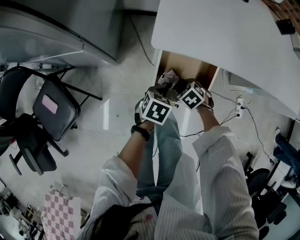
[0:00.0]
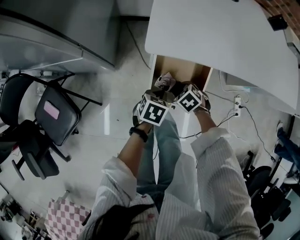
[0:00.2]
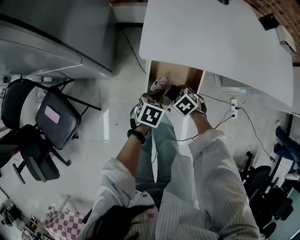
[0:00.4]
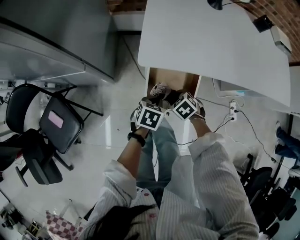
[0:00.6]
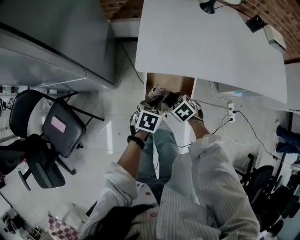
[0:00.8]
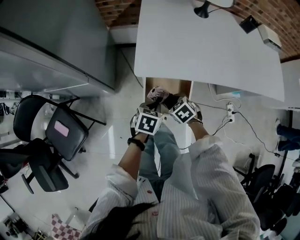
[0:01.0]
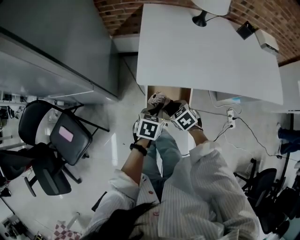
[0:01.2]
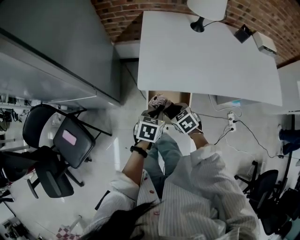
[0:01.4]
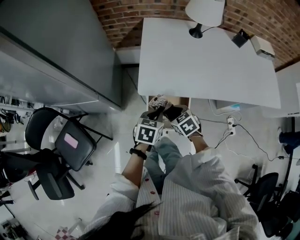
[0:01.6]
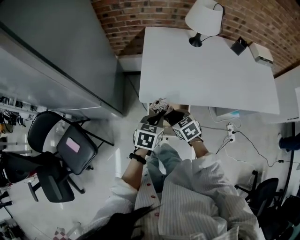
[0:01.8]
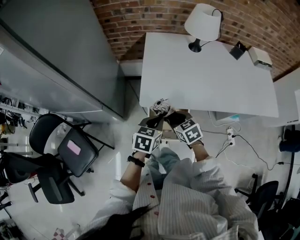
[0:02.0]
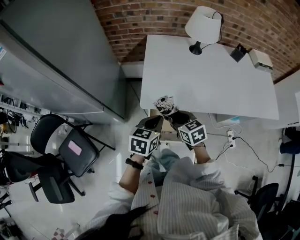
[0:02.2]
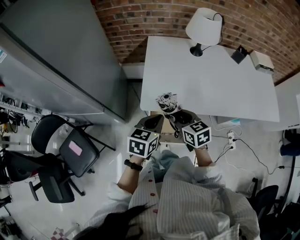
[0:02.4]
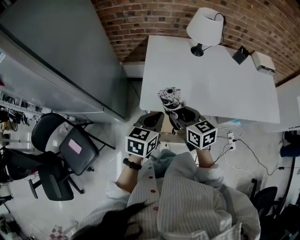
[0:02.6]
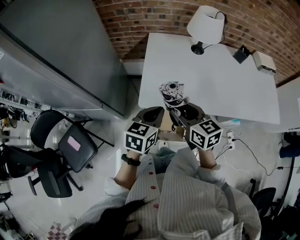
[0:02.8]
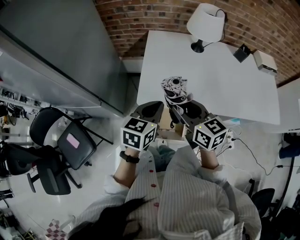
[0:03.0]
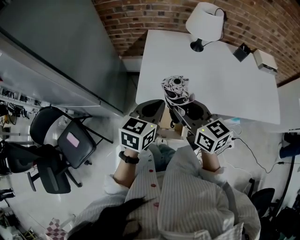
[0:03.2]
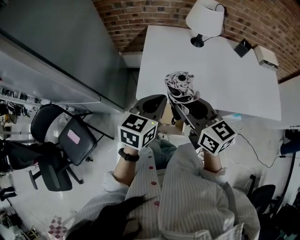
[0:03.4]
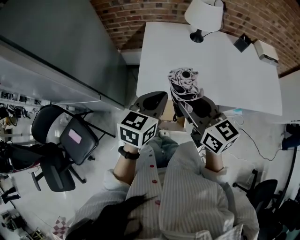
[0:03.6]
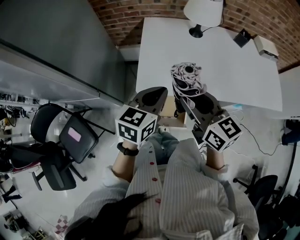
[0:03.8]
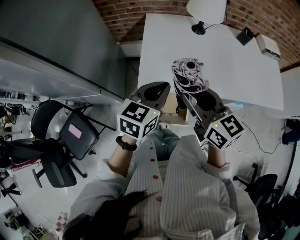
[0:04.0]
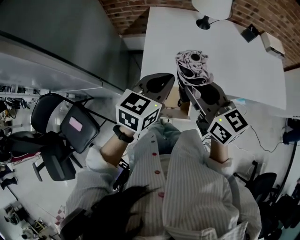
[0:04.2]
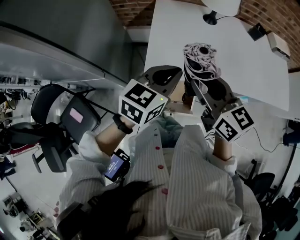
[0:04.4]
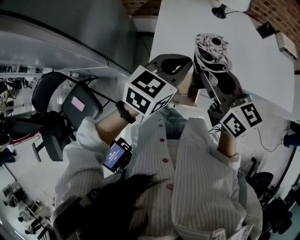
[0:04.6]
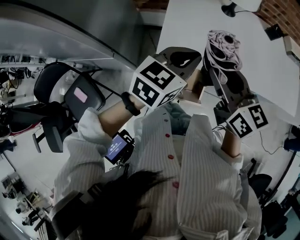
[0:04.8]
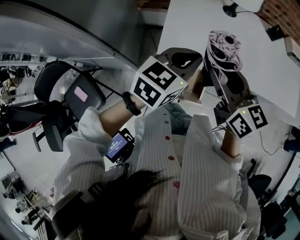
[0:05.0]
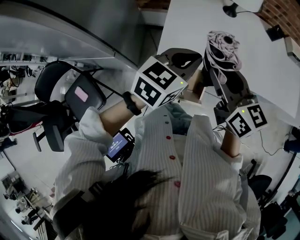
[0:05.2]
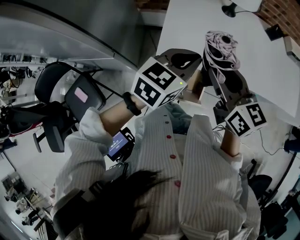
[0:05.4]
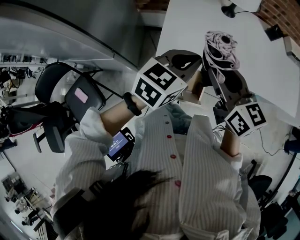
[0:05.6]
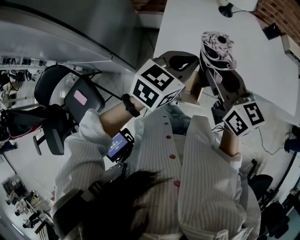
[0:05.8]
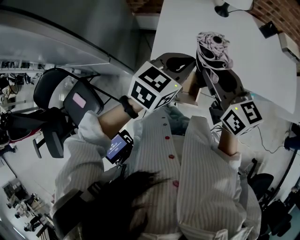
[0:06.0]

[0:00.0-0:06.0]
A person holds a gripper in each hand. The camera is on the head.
0:00.0 to 0:01.6: The grippers both shift upward by some 25 cm. The right gripper turns by approximately 30 degrees.
0:01.6 to 0:03.0: Both grippers travel together upward, roughly 20 cm. The right gripper points its fingers approximately 40 degrees further upward.
0:03.0 to 0:04.4: The grippers both shift upward by some 5 cm.
0:04.4 to 0:06.0: The grippers move only a little.

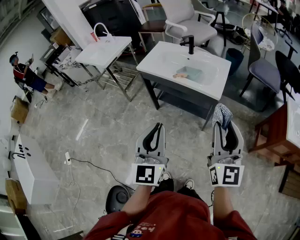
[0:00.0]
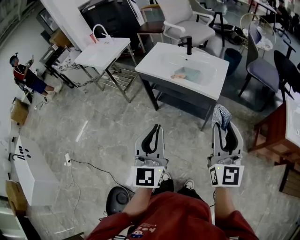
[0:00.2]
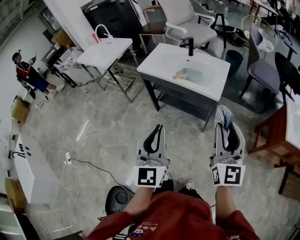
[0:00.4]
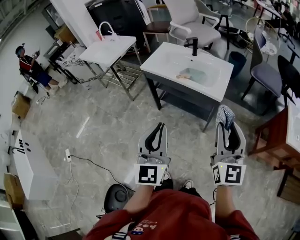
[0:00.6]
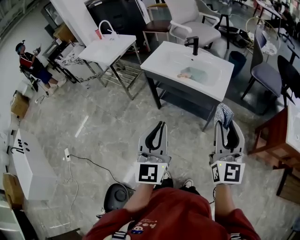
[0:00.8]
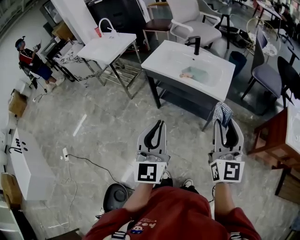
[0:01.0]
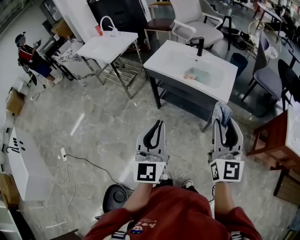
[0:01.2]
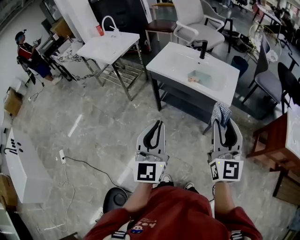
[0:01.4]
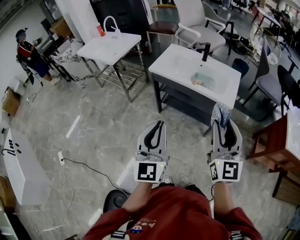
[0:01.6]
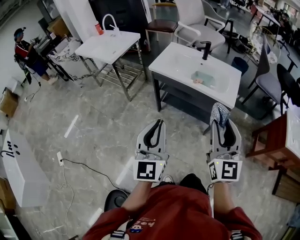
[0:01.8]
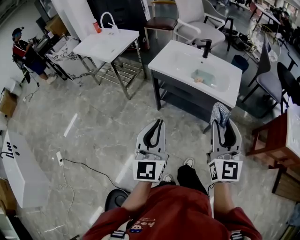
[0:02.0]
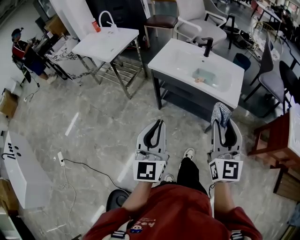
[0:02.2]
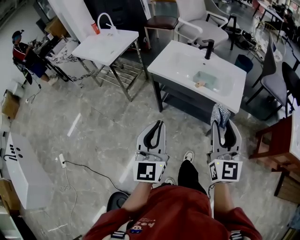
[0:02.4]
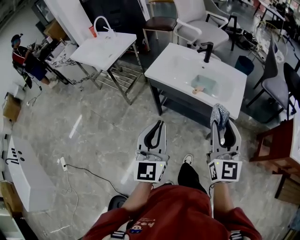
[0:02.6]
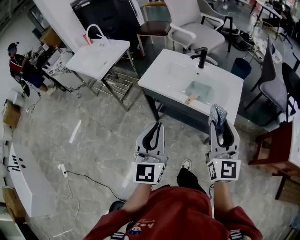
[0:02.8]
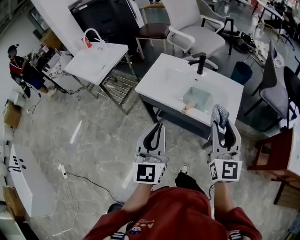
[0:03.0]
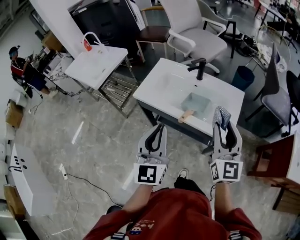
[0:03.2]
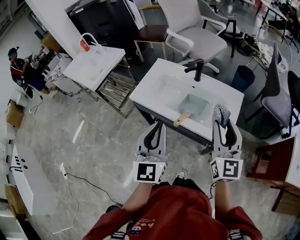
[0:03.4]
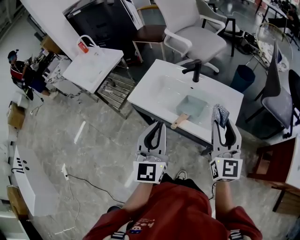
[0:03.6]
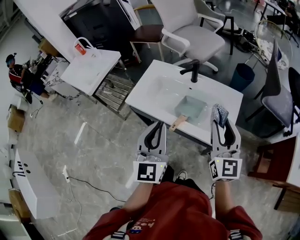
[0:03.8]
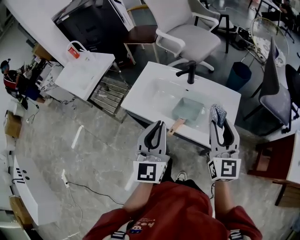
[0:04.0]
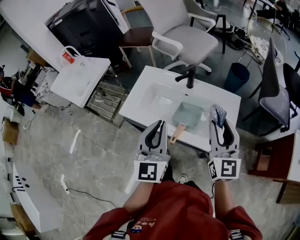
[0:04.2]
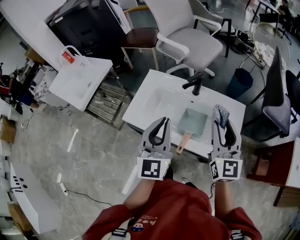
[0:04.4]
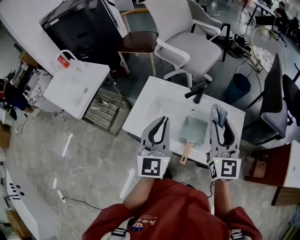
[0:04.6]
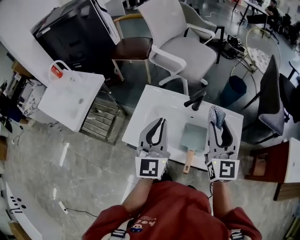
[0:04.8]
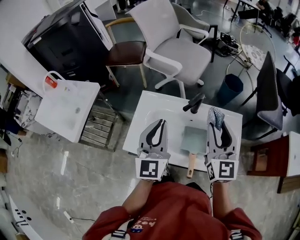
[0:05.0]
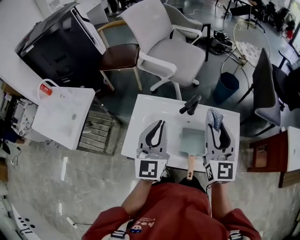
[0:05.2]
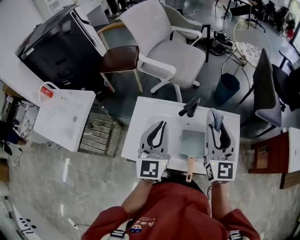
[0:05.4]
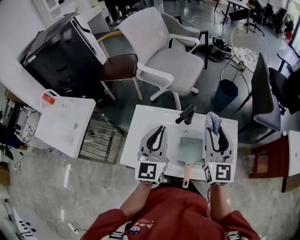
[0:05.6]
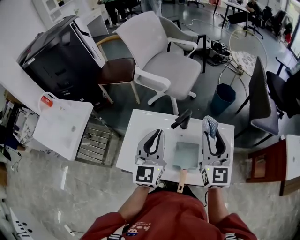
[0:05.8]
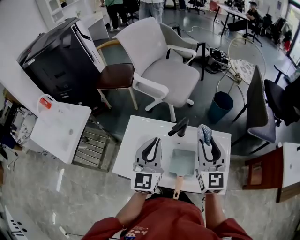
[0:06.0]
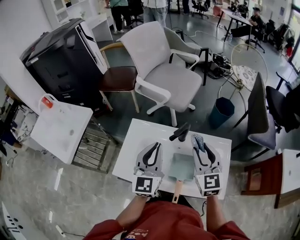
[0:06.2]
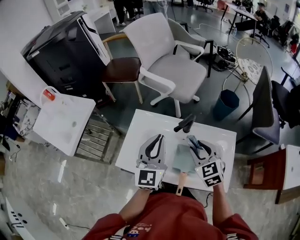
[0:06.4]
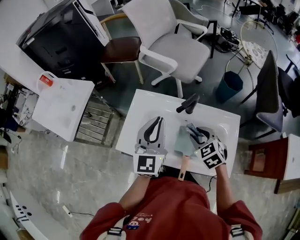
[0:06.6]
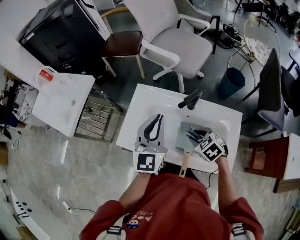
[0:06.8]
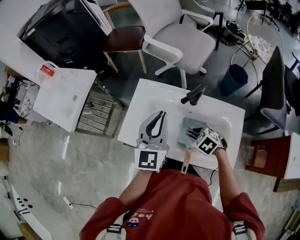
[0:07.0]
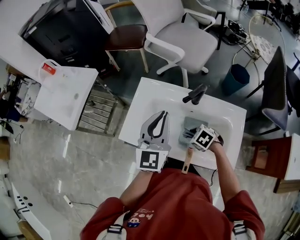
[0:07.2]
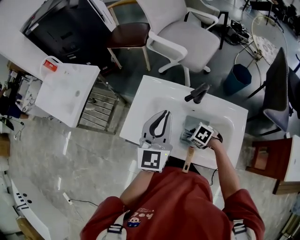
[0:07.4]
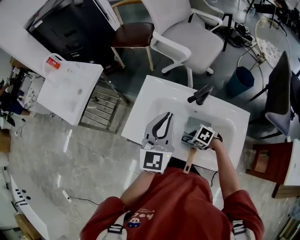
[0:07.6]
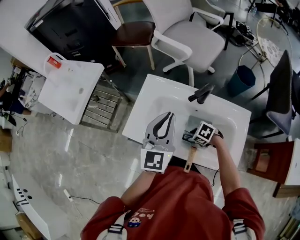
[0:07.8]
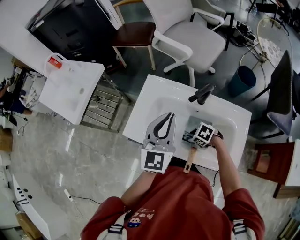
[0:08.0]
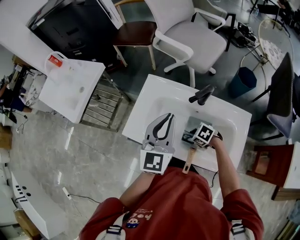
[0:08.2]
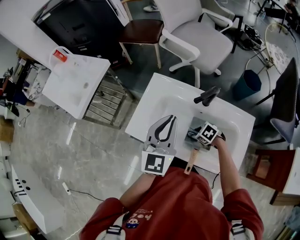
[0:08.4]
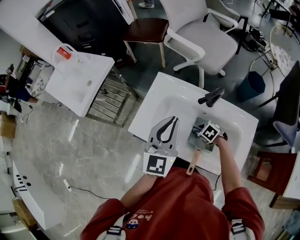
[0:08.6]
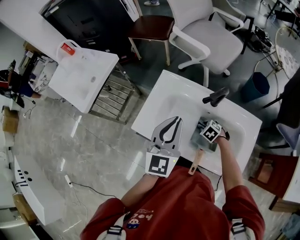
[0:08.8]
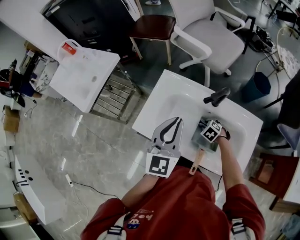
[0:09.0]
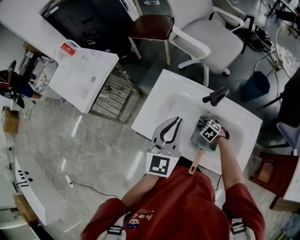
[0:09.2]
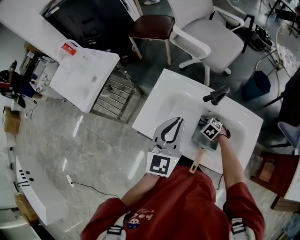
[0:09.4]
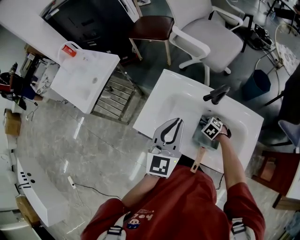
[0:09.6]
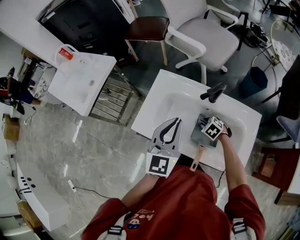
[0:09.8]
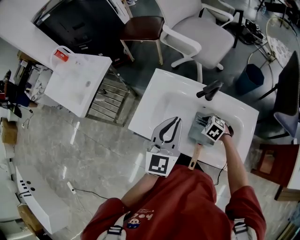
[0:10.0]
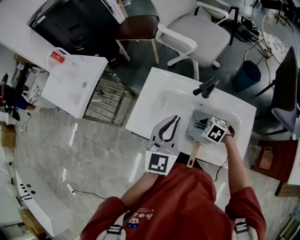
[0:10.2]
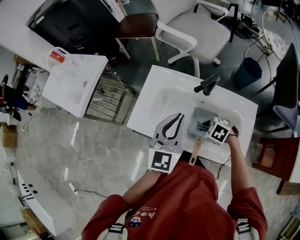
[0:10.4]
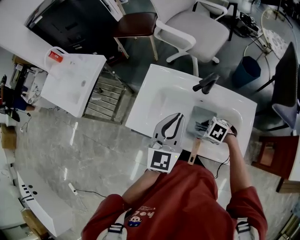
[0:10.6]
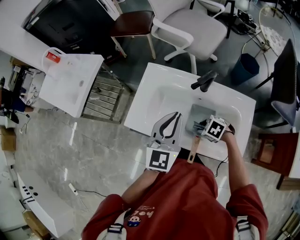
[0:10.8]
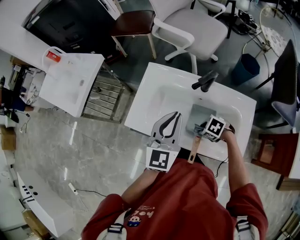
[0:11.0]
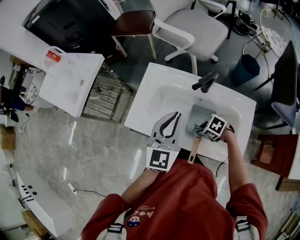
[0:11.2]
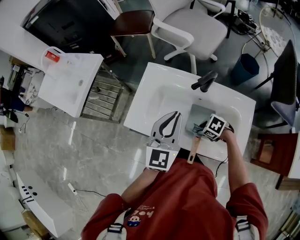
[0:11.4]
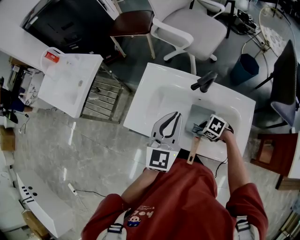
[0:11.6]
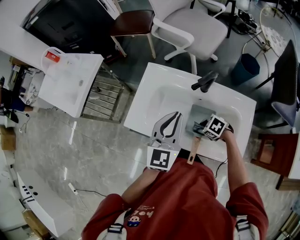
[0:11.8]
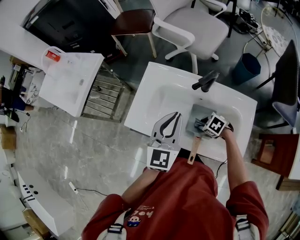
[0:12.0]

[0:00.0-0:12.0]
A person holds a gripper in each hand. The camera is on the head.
0:00.0 to 0:01.6: Both grippers travel together to the left, roughly 15 cm.
0:01.6 to 0:03.0: The grippers both shift forward by about 20 cm.
0:03.0 to 0:04.4: The two grippers go roughly 20 cm forward.
0:04.4 to 0:06.0: The two grippers go roughly 15 cm forward.
0:06.0 to 0:07.6: The right gripper goes some 35 cm downward, and points its fingers roughly 70 degrees further downward. The left gripper moves some 5 cm.
0:07.6 to 0:09.0: The right gripper ends up roughly 10 cm from where it was, and rotates some 20 degrees.
0:09.0 to 0:10.4: The right gripper goes about 15 cm upward and backward.
0:10.4 to 0:12.0: The right gripper moves downward, roughly 5 cm.

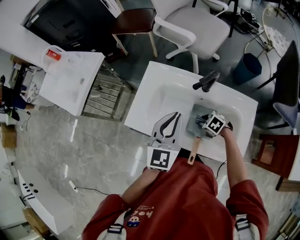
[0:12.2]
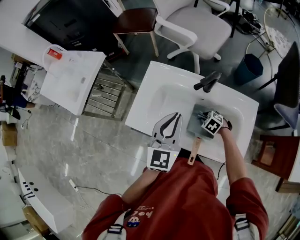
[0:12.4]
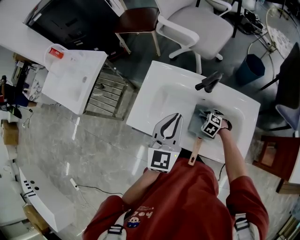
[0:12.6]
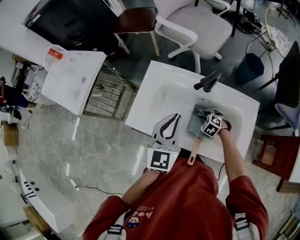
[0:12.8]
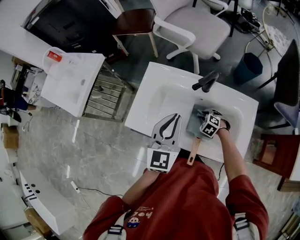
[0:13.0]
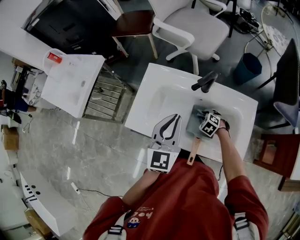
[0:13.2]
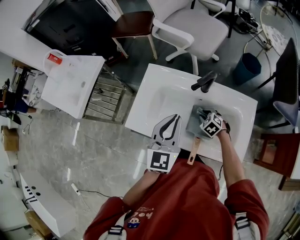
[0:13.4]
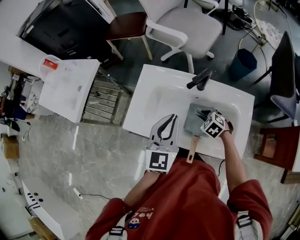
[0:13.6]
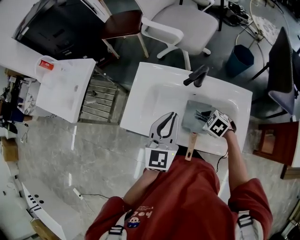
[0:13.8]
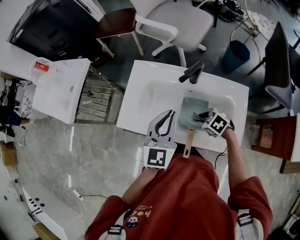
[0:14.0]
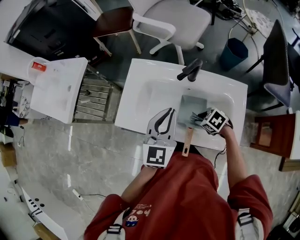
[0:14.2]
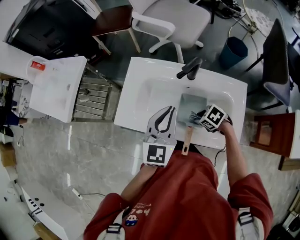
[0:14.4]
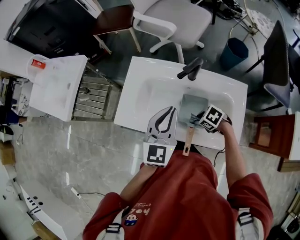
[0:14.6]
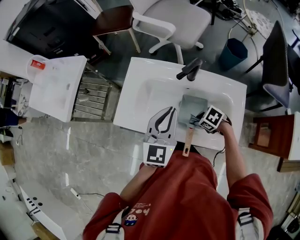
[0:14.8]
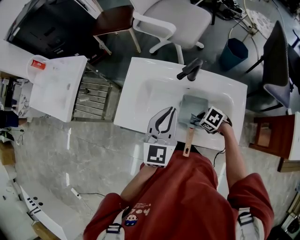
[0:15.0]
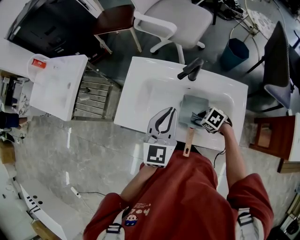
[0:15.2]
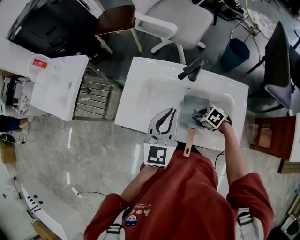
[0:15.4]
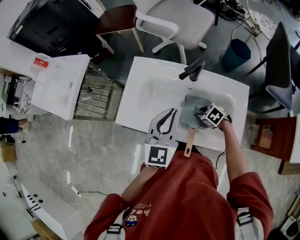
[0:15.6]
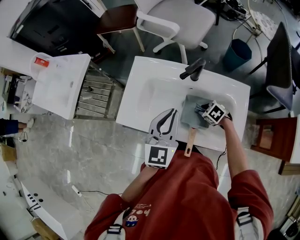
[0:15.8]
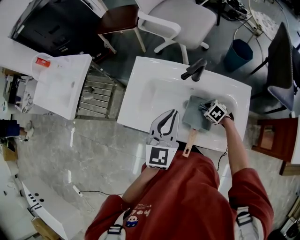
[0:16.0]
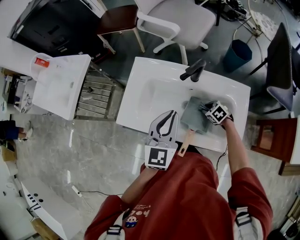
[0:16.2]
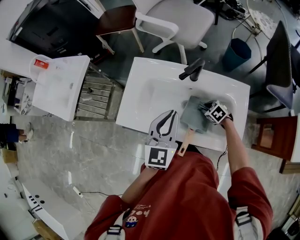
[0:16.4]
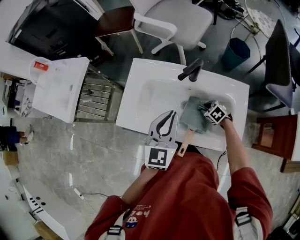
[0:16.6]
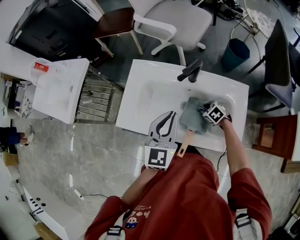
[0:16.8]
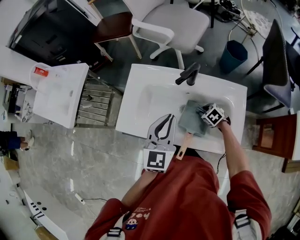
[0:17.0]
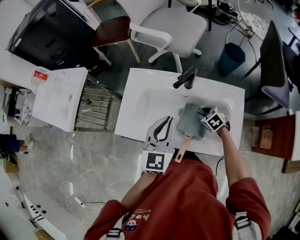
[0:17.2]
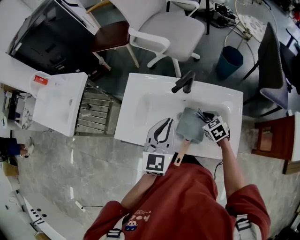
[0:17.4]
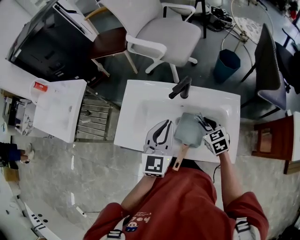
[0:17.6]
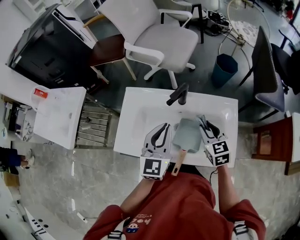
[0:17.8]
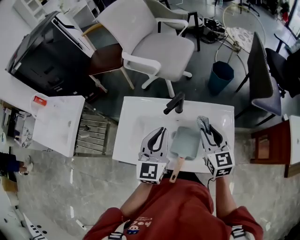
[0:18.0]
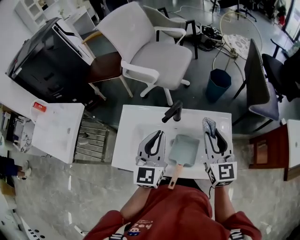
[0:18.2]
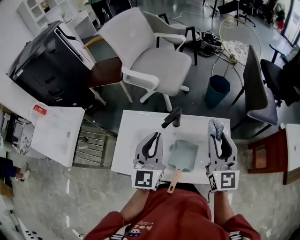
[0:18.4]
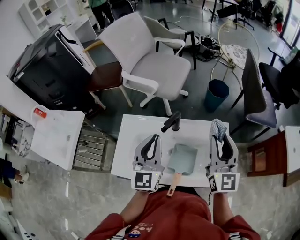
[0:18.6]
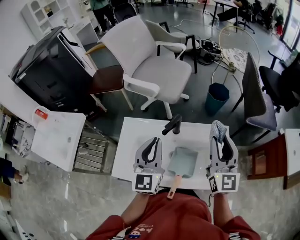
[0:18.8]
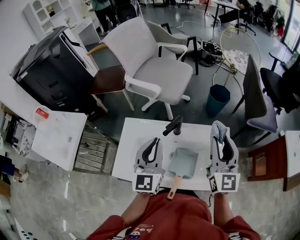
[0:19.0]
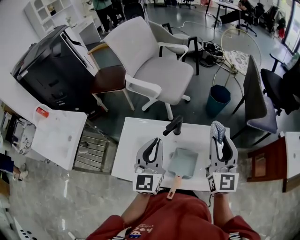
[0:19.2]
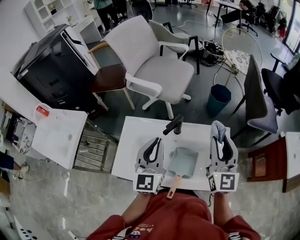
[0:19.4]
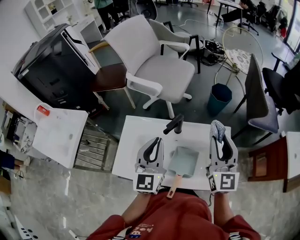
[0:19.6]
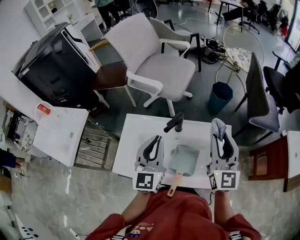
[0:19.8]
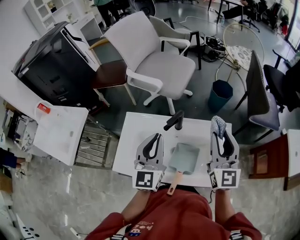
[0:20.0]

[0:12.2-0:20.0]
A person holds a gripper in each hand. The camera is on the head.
0:12.2 to 0:13.8: The right gripper moves upward, about 10 cm.
0:13.8 to 0:15.4: The right gripper heads downward, covering approximately 5 cm.
0:15.4 to 0:16.8: The right gripper heads to the right, covering approximately 5 cm.
0:16.8 to 0:18.4: The left gripper is displaced upward and forward by roughly 10 cm; the right gripper travels upward by approximately 40 cm, and points its fingers approximately 70 degrees further upward.
0:18.4 to 0:20.0: There are only small adjustments of the grippers.
